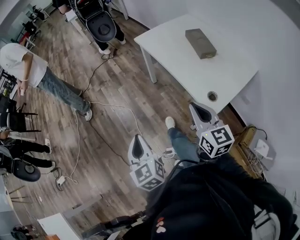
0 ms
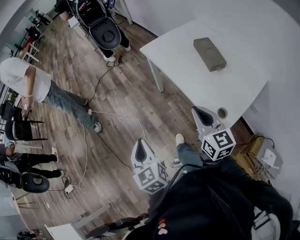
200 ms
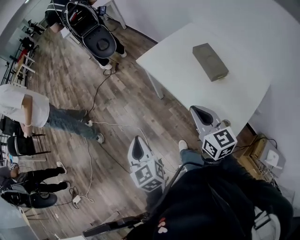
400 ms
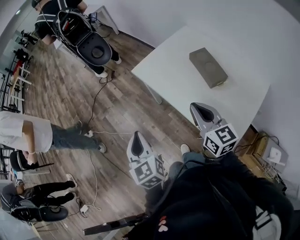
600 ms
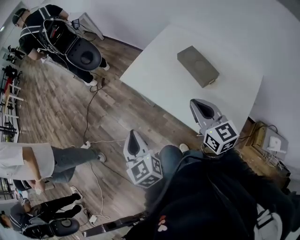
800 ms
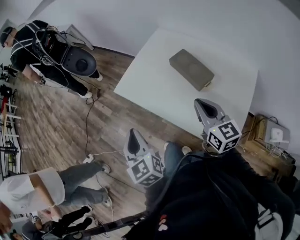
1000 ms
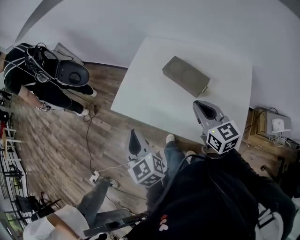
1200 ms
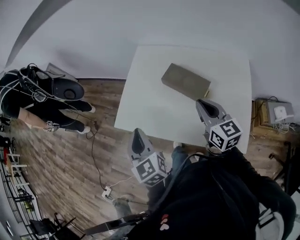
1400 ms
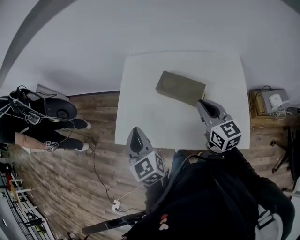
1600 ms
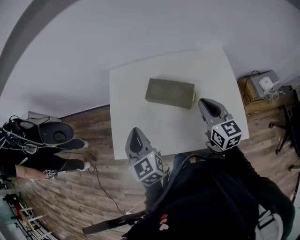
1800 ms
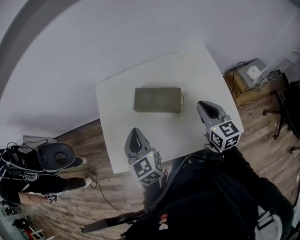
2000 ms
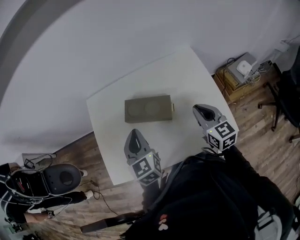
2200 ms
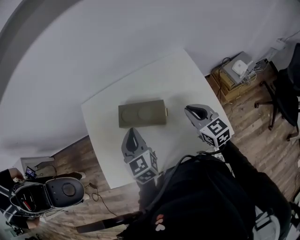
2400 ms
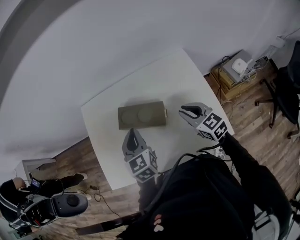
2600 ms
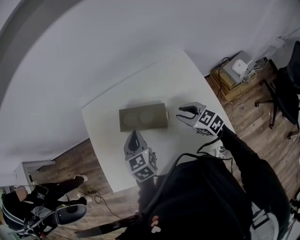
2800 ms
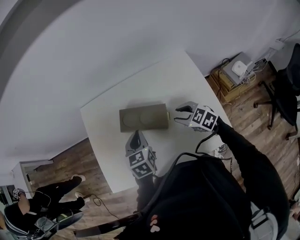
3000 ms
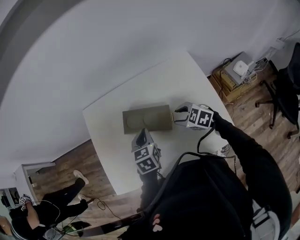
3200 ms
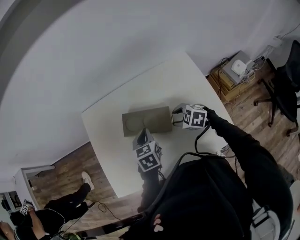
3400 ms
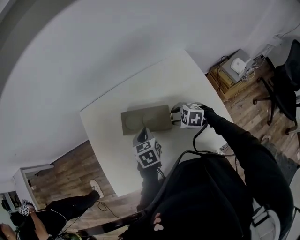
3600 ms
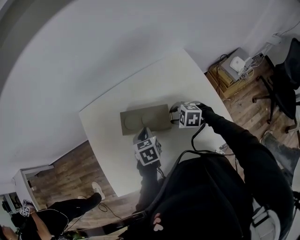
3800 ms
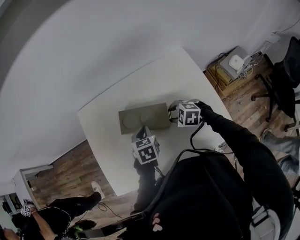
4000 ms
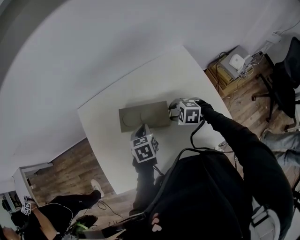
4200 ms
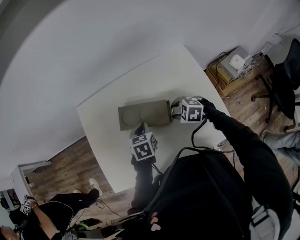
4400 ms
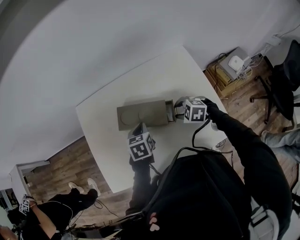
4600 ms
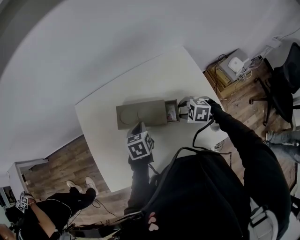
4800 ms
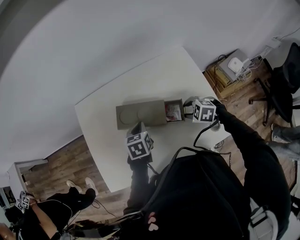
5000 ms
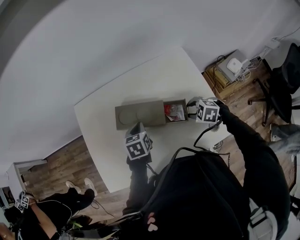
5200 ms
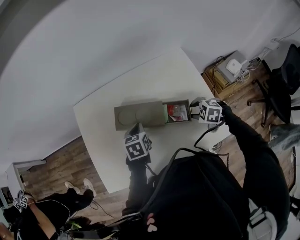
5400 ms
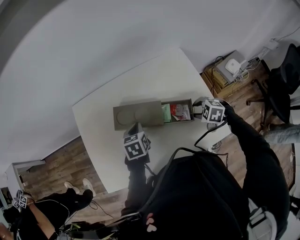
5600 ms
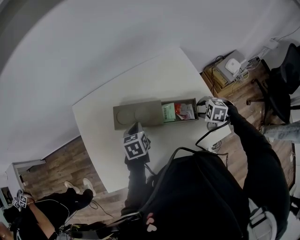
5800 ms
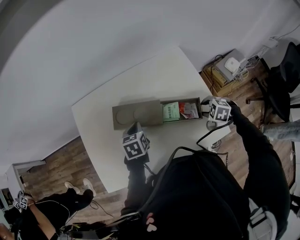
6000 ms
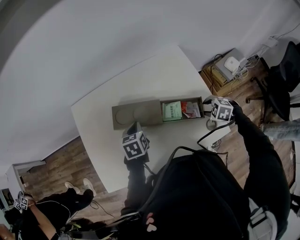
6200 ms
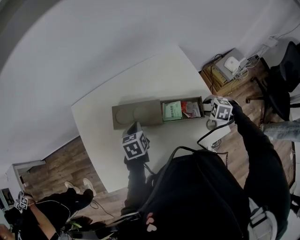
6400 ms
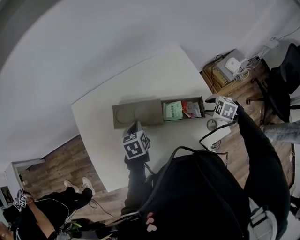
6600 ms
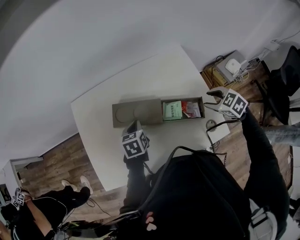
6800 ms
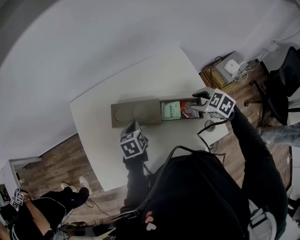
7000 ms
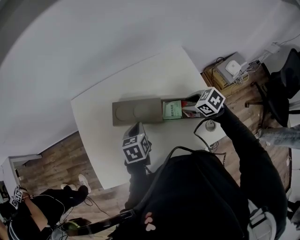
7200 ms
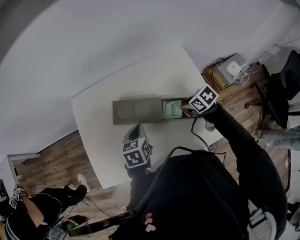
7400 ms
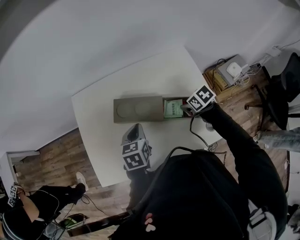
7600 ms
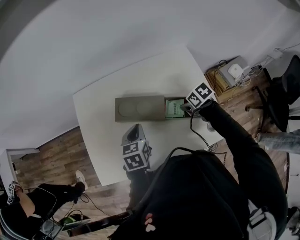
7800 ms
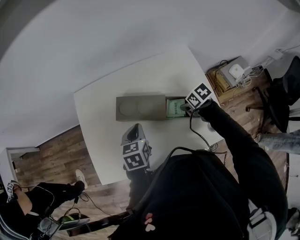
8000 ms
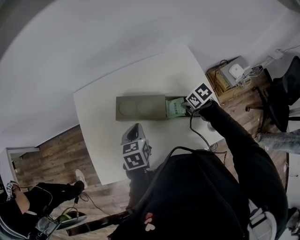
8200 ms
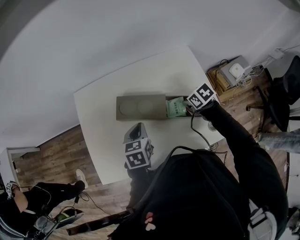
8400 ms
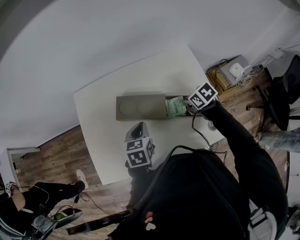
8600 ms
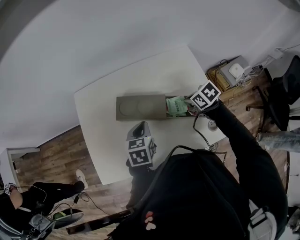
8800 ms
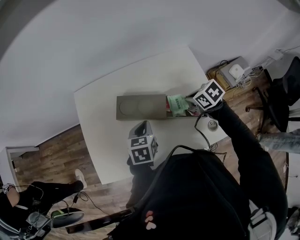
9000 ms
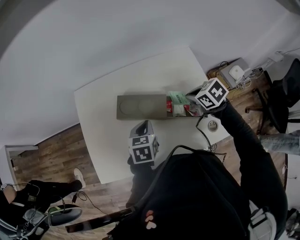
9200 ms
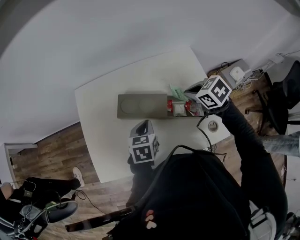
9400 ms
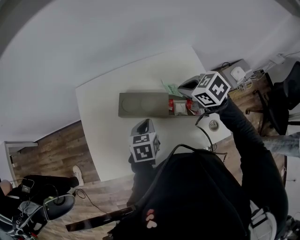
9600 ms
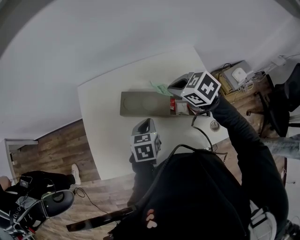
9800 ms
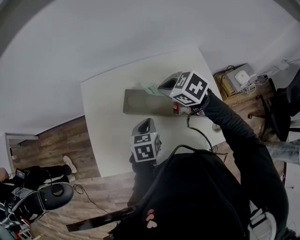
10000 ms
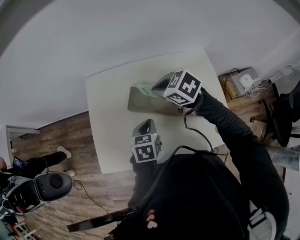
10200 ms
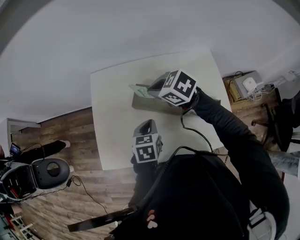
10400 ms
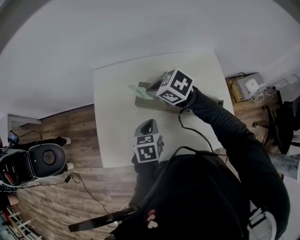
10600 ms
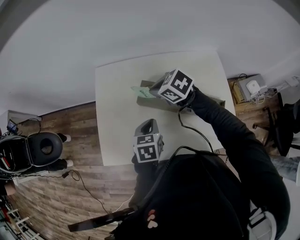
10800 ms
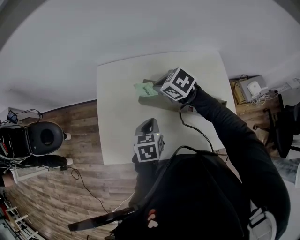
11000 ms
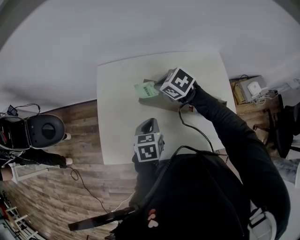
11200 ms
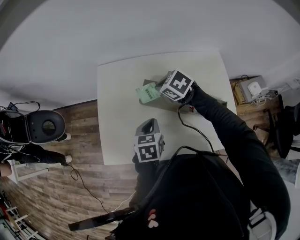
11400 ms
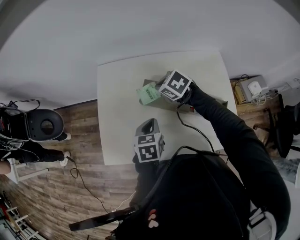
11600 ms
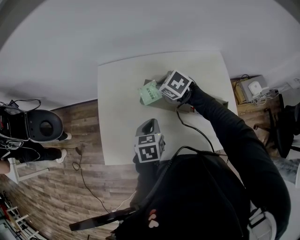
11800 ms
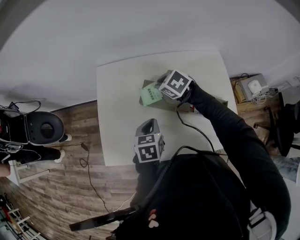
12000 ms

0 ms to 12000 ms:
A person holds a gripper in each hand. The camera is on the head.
0 ms to 1600 ms: The two grippers travel together, roughly 60 cm. The left gripper changes its angle by some 50 degrees. The right gripper rotates some 50 degrees.
1600 ms to 3000 ms: The right gripper moves downward and to the right, approximately 15 cm, changes its angle by roughly 30 degrees, and opens its fingers. Meanwhile the left gripper is displaced to the right, forward and downward by roughly 25 cm, and changes its angle by about 40 degrees.
3000 ms to 4400 ms: Both grippers travel together downward, roughly 5 cm. The right gripper turns by approximately 20 degrees.
4400 ms to 6000 ms: The right gripper moves to the right and backward, approximately 20 cm.
6000 ms to 7600 ms: The right gripper reaches approximately 10 cm upward, then returns, and rolls clockwise, seen from behind, by approximately 40 degrees, while the left gripper changes place by about 5 cm.
7600 ms to 9000 ms: The right gripper heads upward, covering some 5 cm, and closes.
9000 ms to 10400 ms: The left gripper goes roughly 5 cm to the left; the right gripper moves to the left, forward and upward, approximately 30 cm, and rotates about 30 degrees.
10400 ms to 12000 ms: The right gripper shifts roughly 10 cm downward.

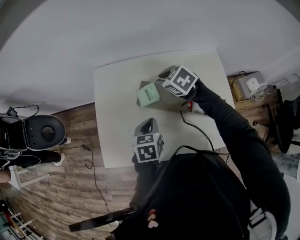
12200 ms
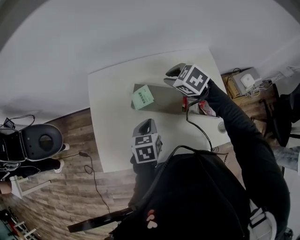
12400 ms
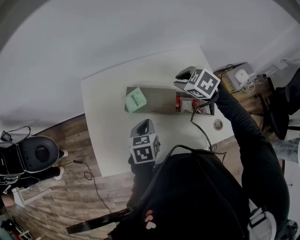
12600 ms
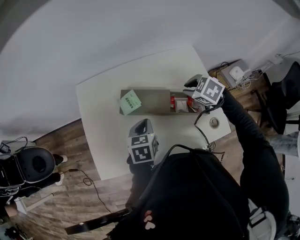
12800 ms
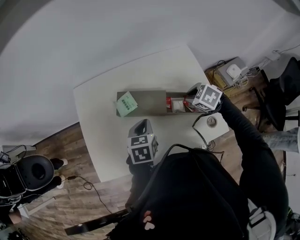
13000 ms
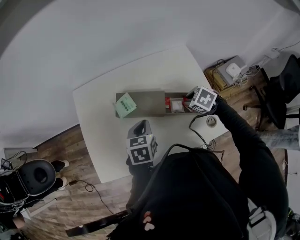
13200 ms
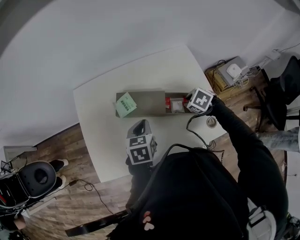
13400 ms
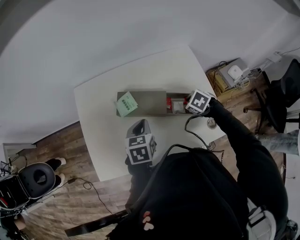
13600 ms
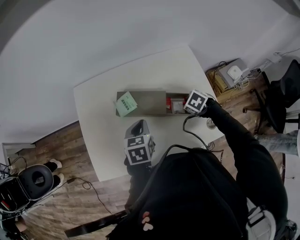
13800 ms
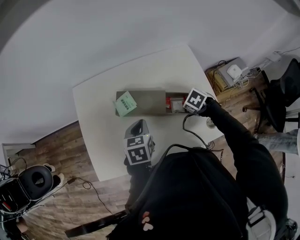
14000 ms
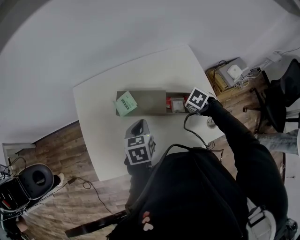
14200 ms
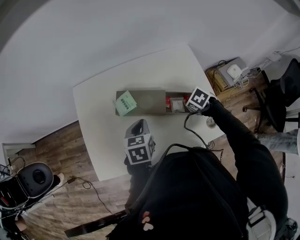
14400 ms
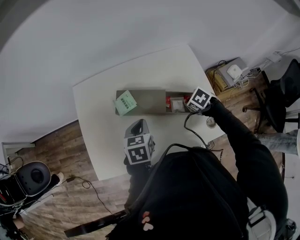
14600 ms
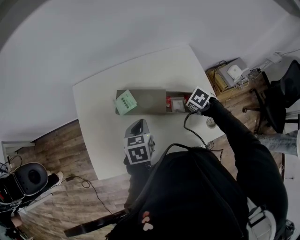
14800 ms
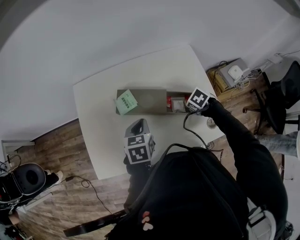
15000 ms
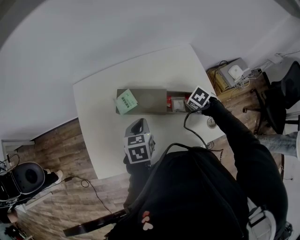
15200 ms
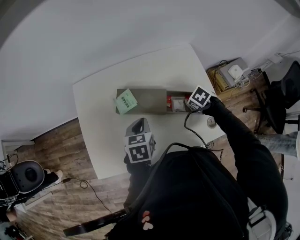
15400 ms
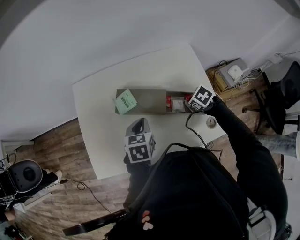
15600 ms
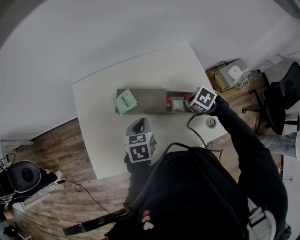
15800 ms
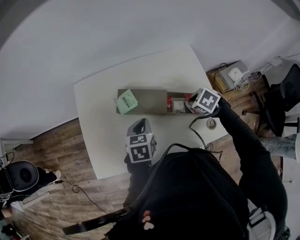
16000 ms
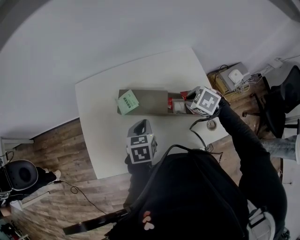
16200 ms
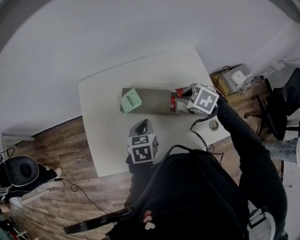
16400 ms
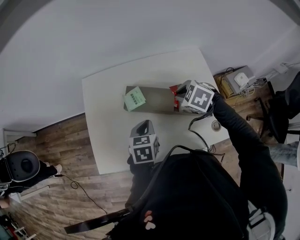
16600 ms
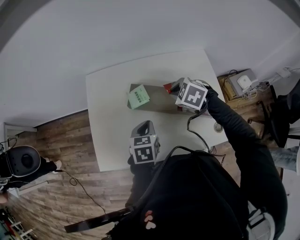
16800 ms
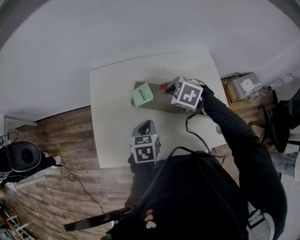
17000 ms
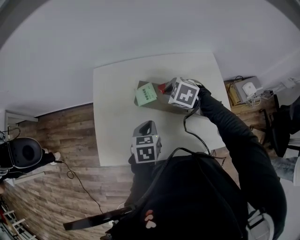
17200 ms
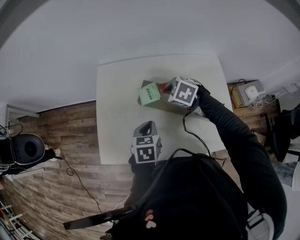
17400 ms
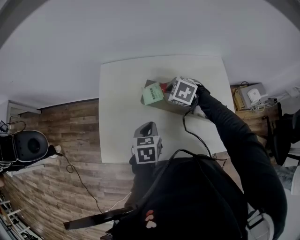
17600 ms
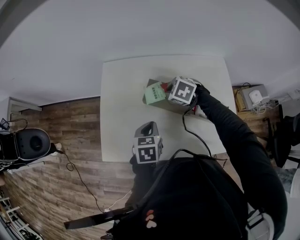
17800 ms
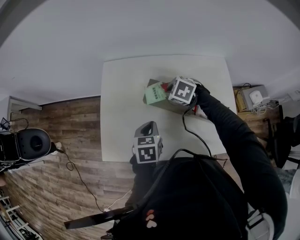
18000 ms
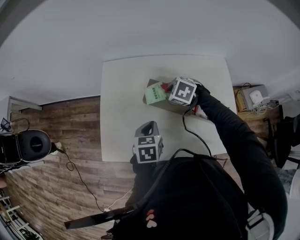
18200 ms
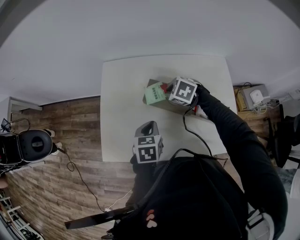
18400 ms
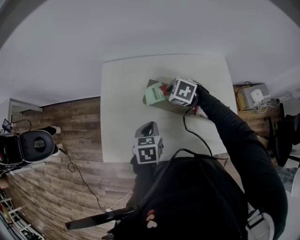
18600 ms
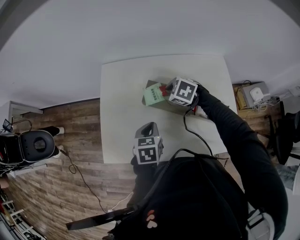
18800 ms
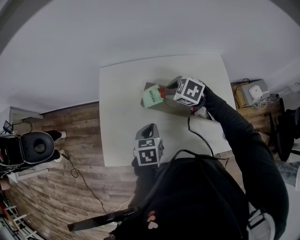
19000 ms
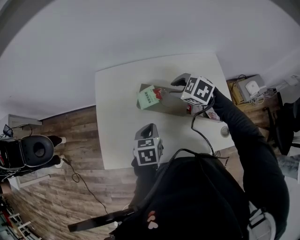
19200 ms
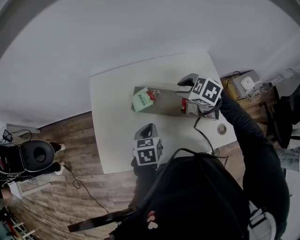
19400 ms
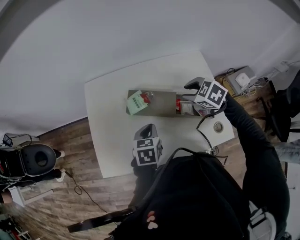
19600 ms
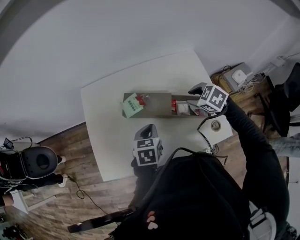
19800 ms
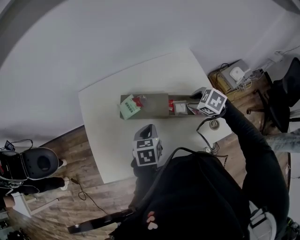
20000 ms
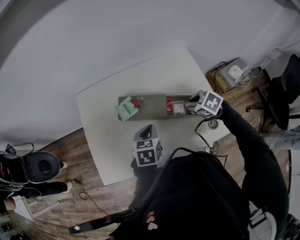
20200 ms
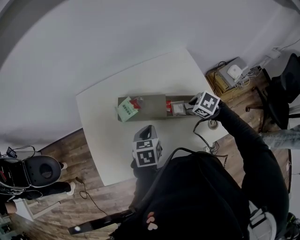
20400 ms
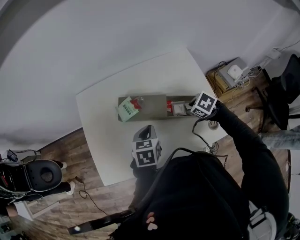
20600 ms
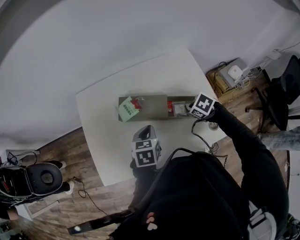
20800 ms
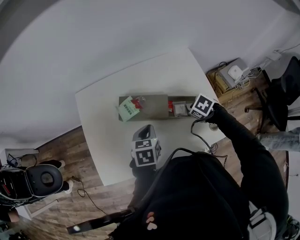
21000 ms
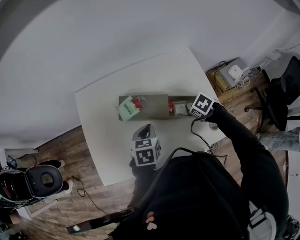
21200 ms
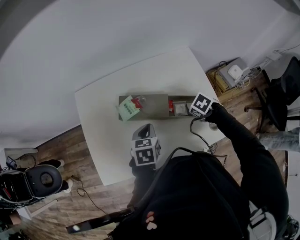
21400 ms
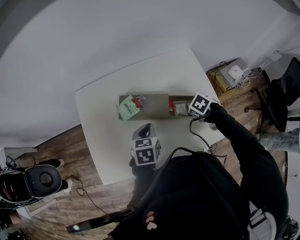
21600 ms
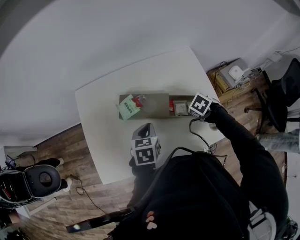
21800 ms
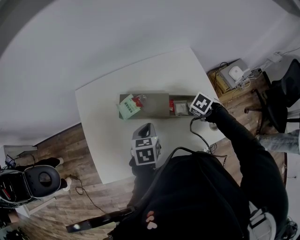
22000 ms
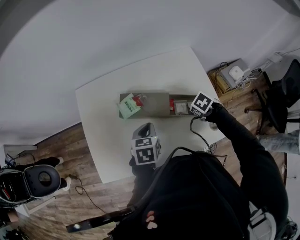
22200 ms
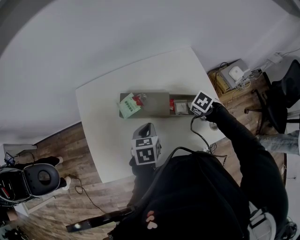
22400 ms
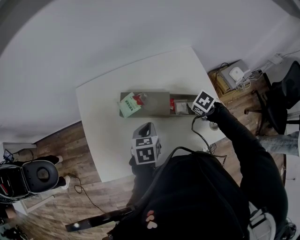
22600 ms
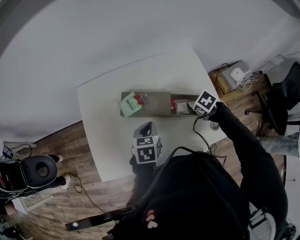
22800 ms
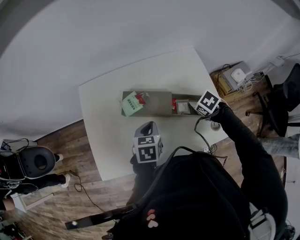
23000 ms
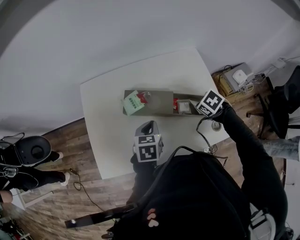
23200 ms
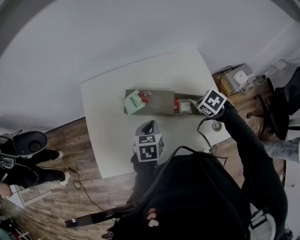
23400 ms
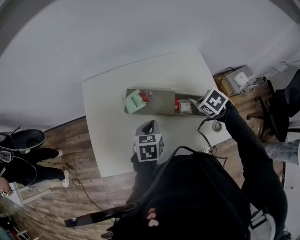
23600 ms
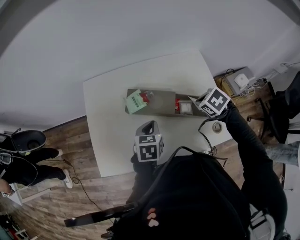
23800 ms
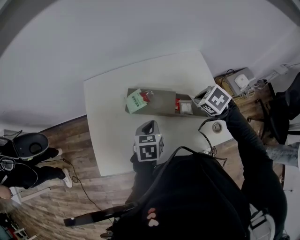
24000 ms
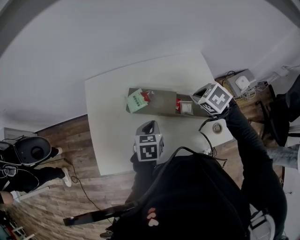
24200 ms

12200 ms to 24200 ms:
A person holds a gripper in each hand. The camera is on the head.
12200 ms to 13800 ms: The left gripper shifts by roughly 5 cm, while the right gripper ends up some 30 cm from where it was, and swivels about 30 degrees.
13800 ms to 15200 ms: The grippers move only a little.
15200 ms to 16600 ms: The right gripper travels upward by roughly 10 cm, and changes its angle by some 30 degrees.
16600 ms to 18200 ms: The left gripper travels to the left by roughly 5 cm, while the right gripper heads to the left, forward and downward, covering roughly 15 cm.
18200 ms to 19800 ms: The right gripper shifts some 20 cm to the right and backward, turns by approximately 20 degrees, and opens its fingers. The left gripper moves to the right, some 10 cm.
19800 ms to 21200 ms: The right gripper moves downward, about 10 cm, and changes its angle by roughly 30 degrees.
21200 ms to 22600 ms: The right gripper closes up.
22600 ms to 24200 ms: The right gripper shifts roughly 15 cm upward, and changes its angle by about 20 degrees.
